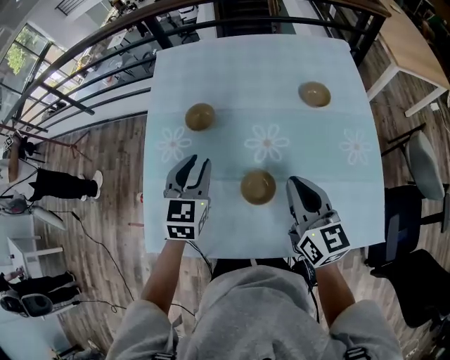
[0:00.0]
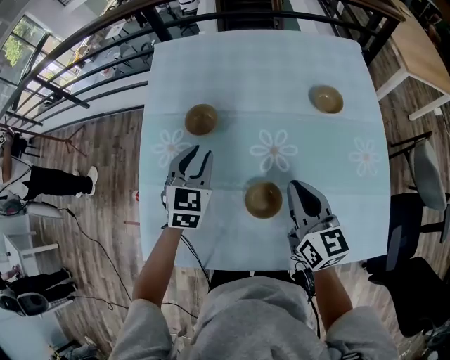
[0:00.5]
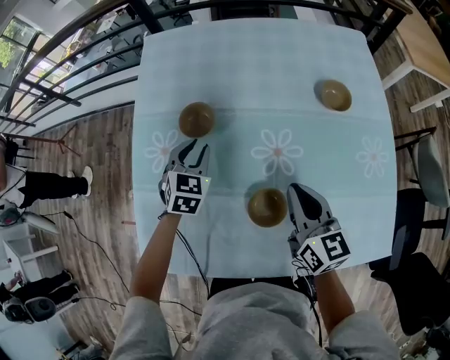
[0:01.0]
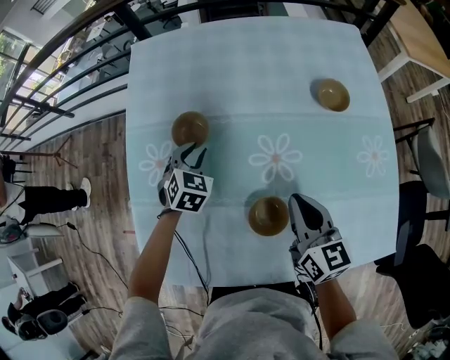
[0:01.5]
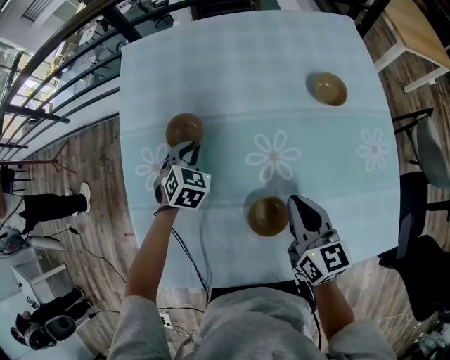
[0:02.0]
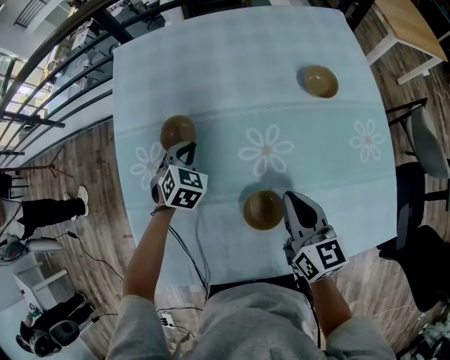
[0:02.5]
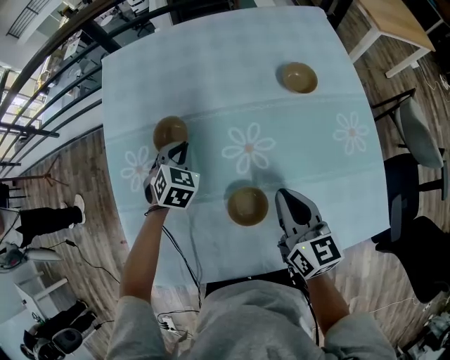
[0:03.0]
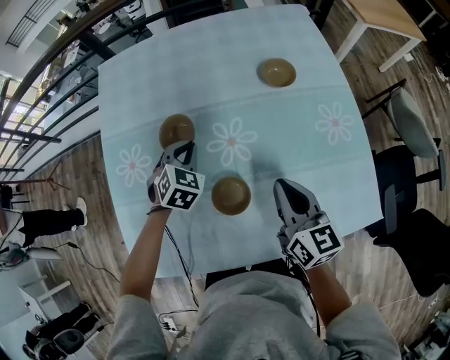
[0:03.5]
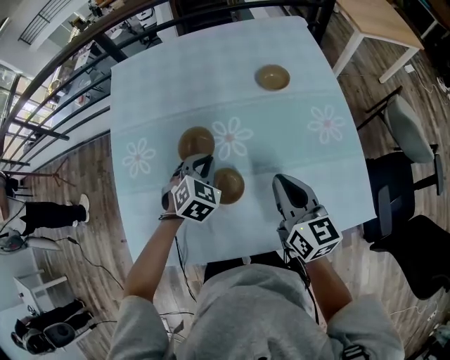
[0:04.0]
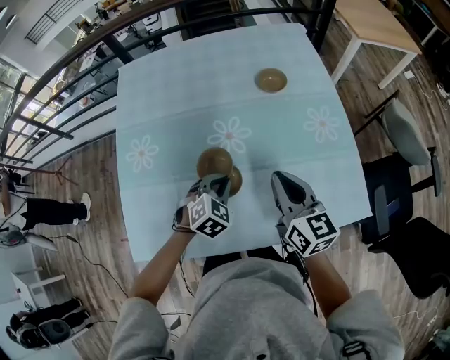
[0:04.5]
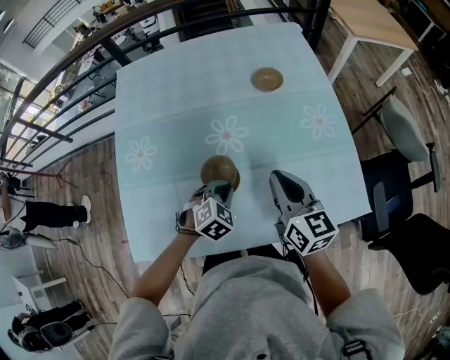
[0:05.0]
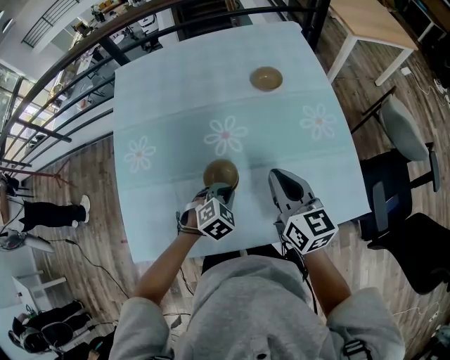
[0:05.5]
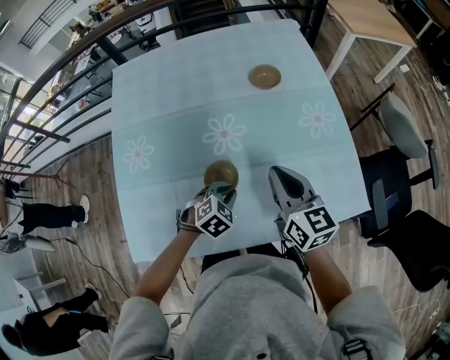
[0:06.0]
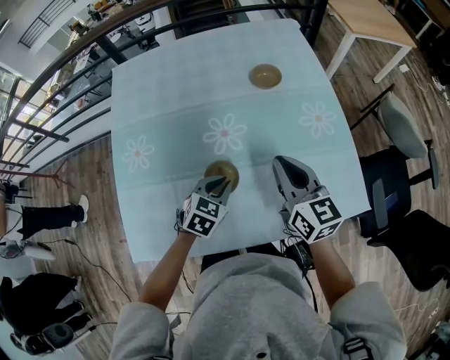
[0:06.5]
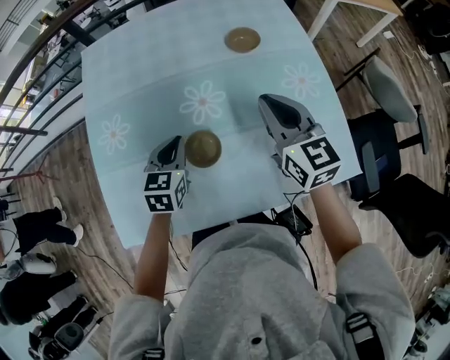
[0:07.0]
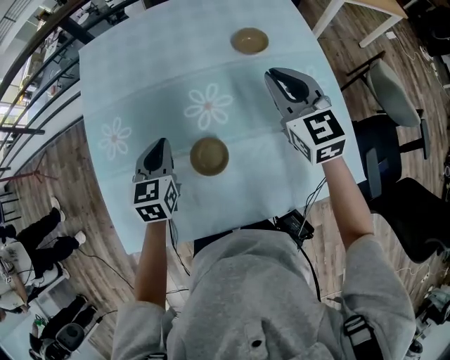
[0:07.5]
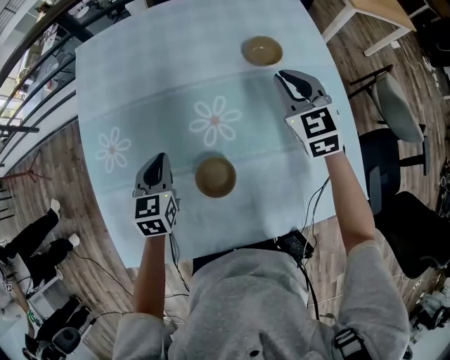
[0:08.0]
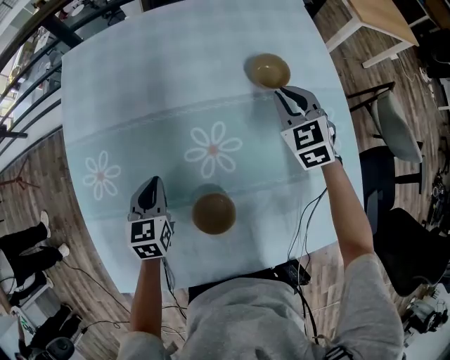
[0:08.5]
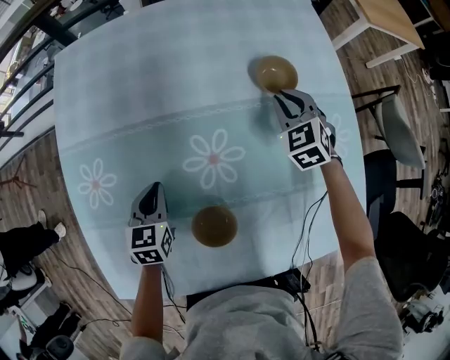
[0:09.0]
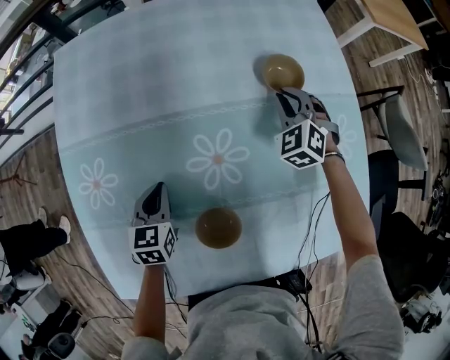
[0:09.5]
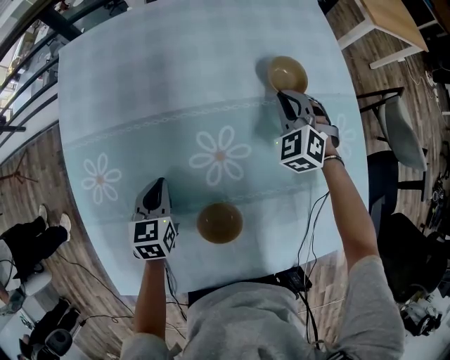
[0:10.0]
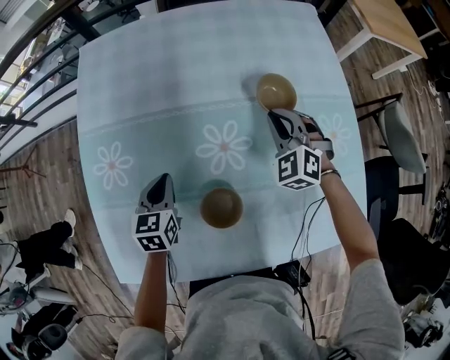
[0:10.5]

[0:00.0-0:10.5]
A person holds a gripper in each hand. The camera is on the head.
0:00.0 to 0:02.0: The right gripper is displaced downward and forward by some 15 cm. Meanwhile the left gripper moves downward and forward, roughly 25 cm, and swivels about 30 degrees.
0:02.0 to 0:04.0: The right gripper is displaced to the right, backward and upward by about 15 cm. Meanwhile the left gripper heads to the right, backward and upward, covering approximately 25 cm.
0:04.0 to 0:06.5: The left gripper travels backward and to the right by roughly 10 cm, and turns by roughly 20 degrees.
0:06.5 to 0:08.5: The right gripper travels forward and downward by some 30 cm, and rolls counterclockwise, seen from behind, by approximately 40 degrees. Meanwhile the left gripper moves to the left and forward, about 20 cm, and changes its angle by some 30 degrees.
0:08.5 to 0:10.5: The right gripper goes about 5 cm to the left, and rotates approximately 20 degrees.

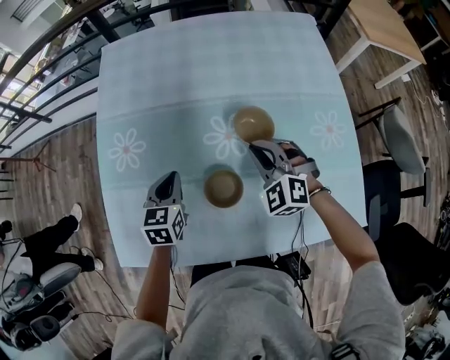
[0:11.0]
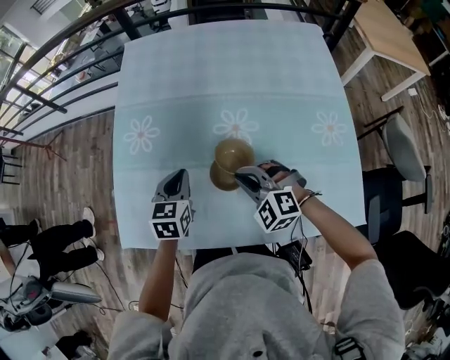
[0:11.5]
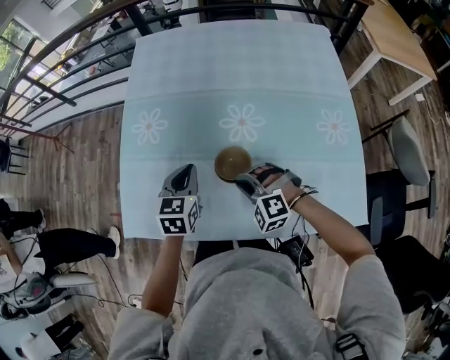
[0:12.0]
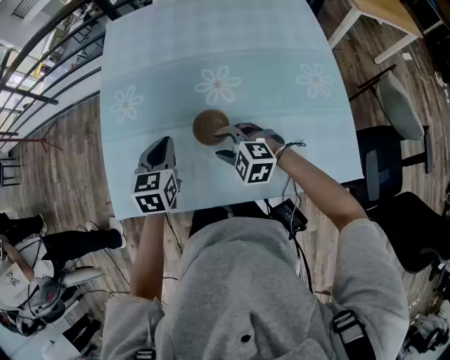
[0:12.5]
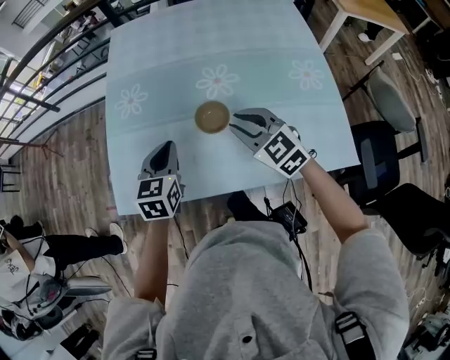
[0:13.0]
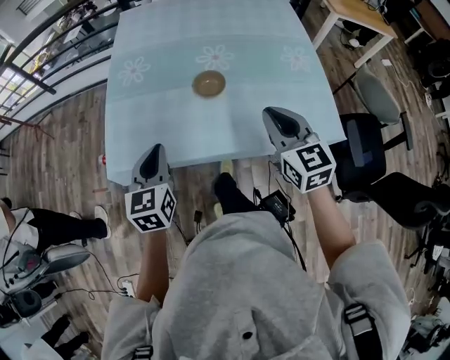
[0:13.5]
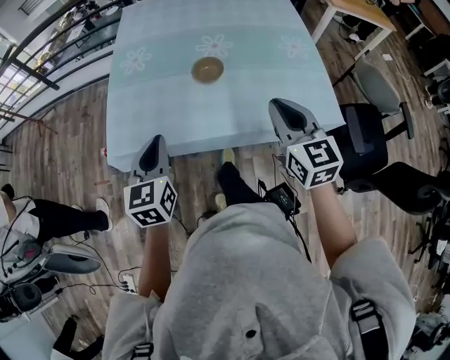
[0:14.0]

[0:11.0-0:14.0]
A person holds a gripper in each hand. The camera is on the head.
0:11.0 to 0:12.5: The left gripper shifts approximately 10 cm backward and upward, while the right gripper travels to the left and backward by some 20 cm, swivels about 30 degrees, and opens its fingers.
0:12.5 to 0:14.0: The right gripper shifts roughly 30 cm backward and upward, points its fingers about 30 degrees further upward, and closes up. The left gripper heads backward, covering roughly 25 cm.

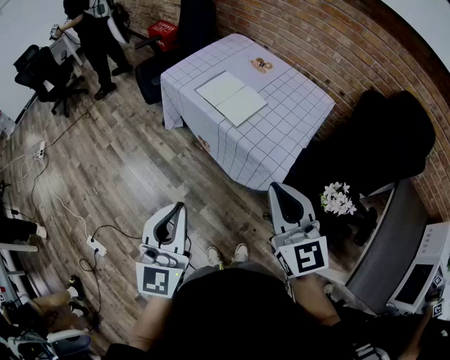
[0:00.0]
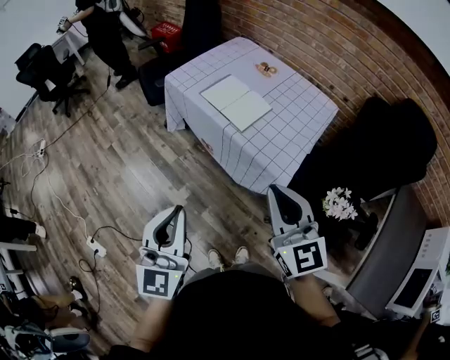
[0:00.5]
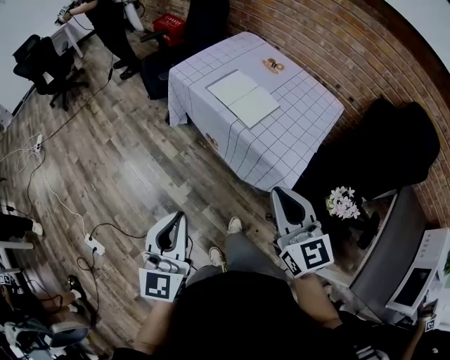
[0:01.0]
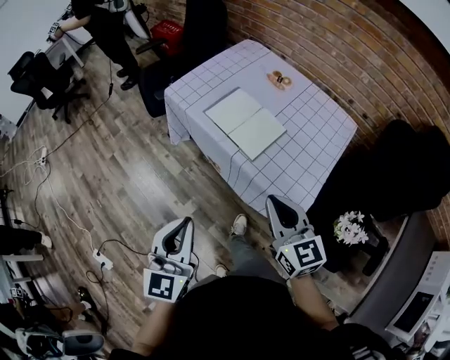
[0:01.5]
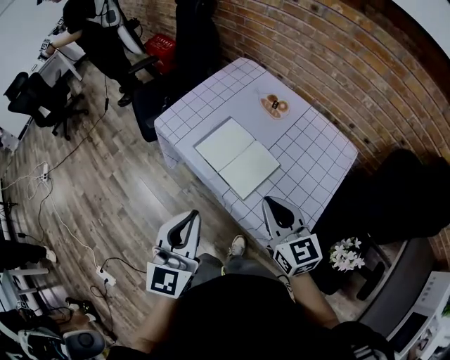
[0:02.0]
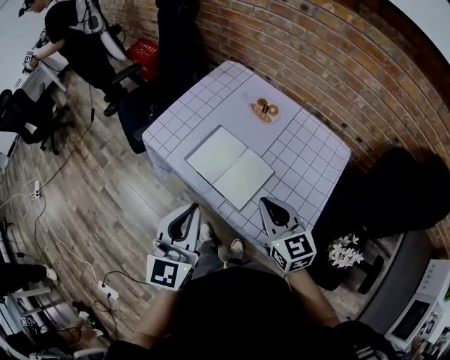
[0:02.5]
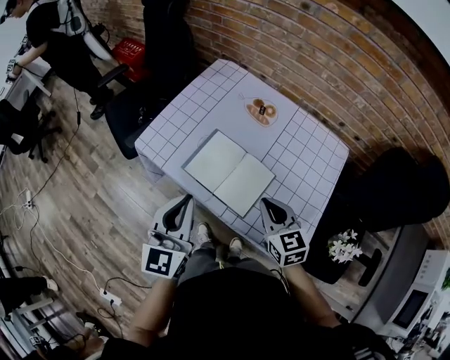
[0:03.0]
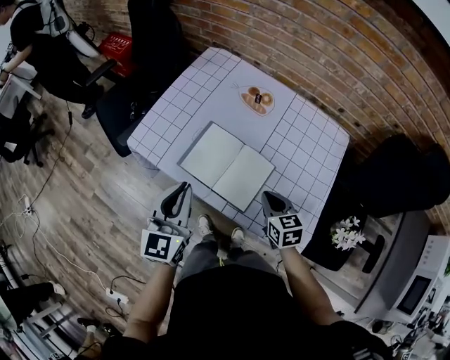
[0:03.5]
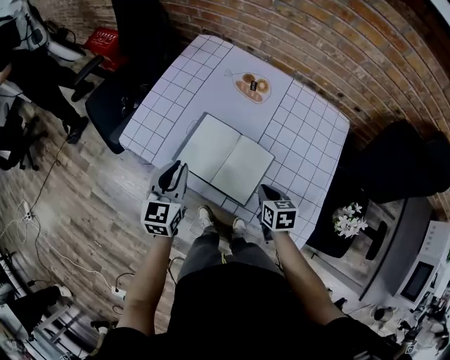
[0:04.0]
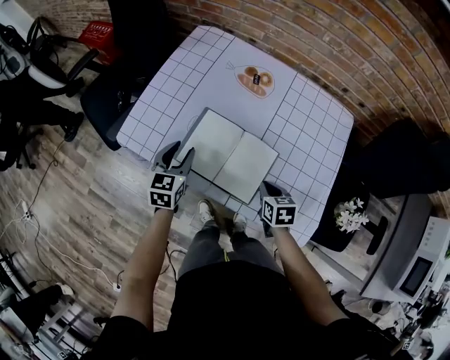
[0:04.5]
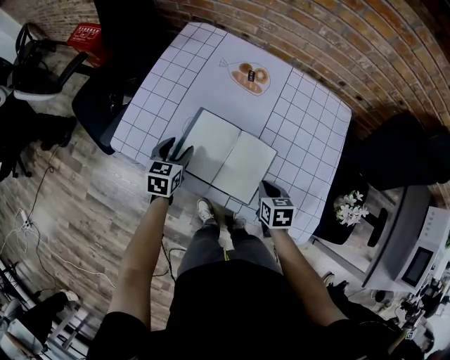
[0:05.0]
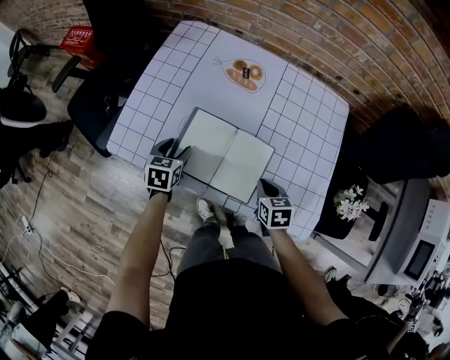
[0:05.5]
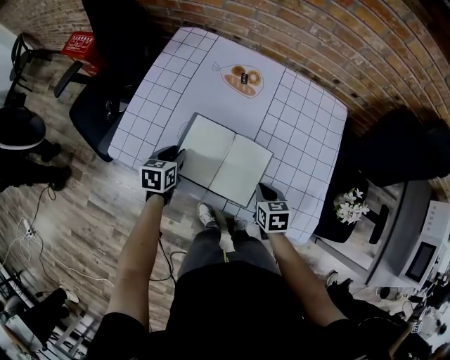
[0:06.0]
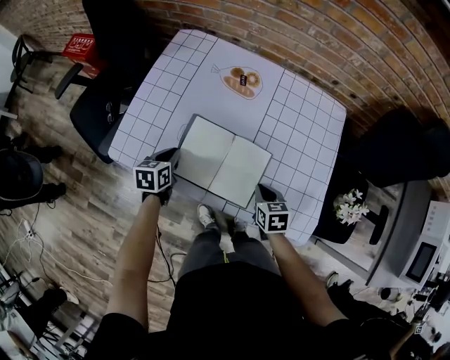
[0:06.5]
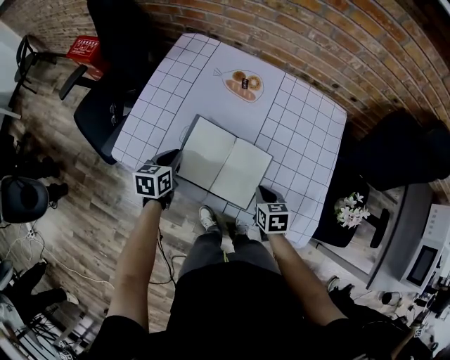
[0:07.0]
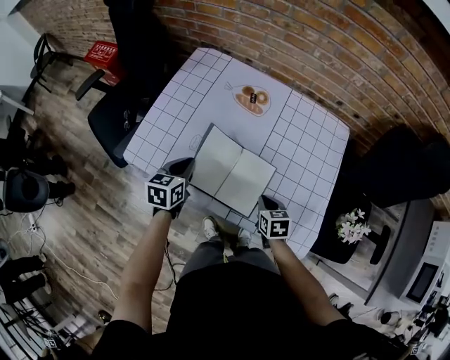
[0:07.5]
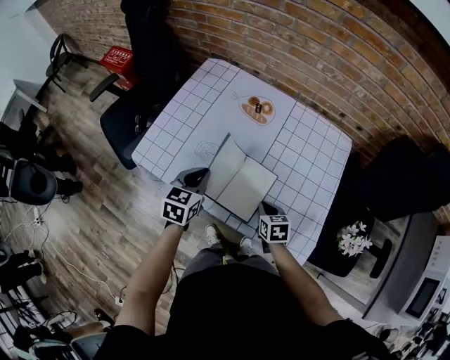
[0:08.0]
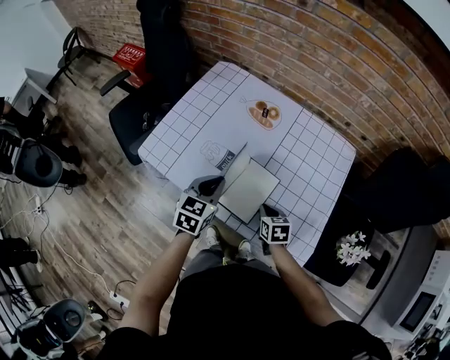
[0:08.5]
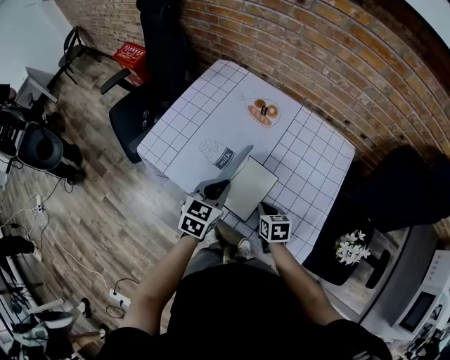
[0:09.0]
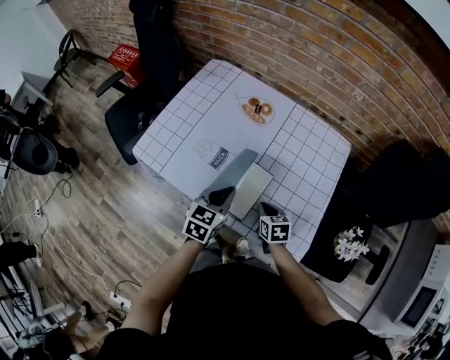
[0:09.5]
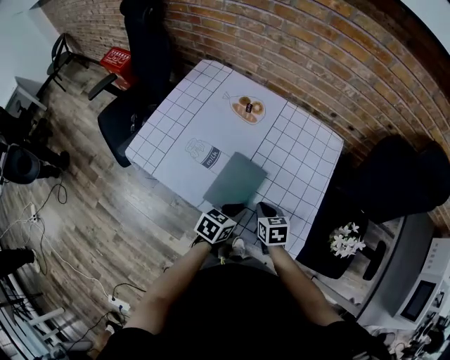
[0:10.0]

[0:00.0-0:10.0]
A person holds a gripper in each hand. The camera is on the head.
0:00.0 to 0:02.0: The two grippers go about 30 cm forward.
0:02.0 to 0:04.0: The left gripper goes some 30 cm forward and downward, and rotates some 20 degrees. The right gripper moves downward, approximately 25 cm, and angles its fingers downward, by about 40 degrees.
0:04.0 to 0:06.0: The left gripper travels downward and forward by about 15 cm, swivels some 30 degrees, and opens up.
0:06.0 to 0:08.0: The left gripper shifts approximately 15 cm upward and to the right, and closes up.
0:08.0 to 0:10.0: The left gripper shifts roughly 20 cm to the right and backward, and turns by roughly 20 degrees.

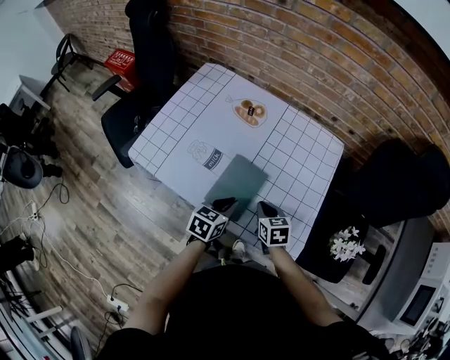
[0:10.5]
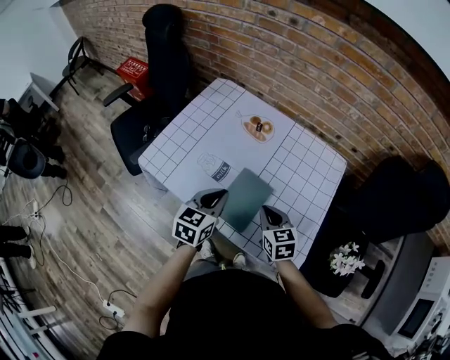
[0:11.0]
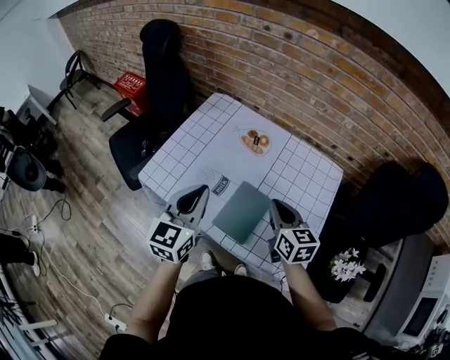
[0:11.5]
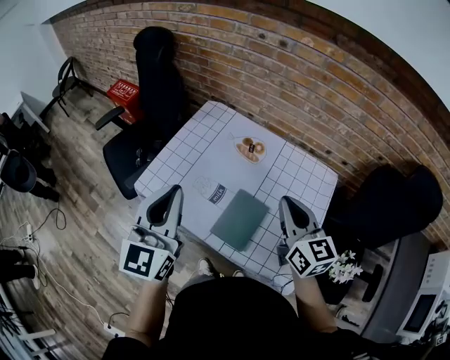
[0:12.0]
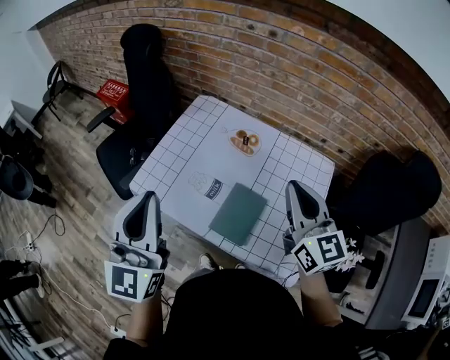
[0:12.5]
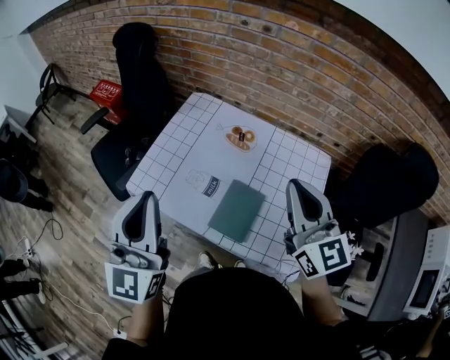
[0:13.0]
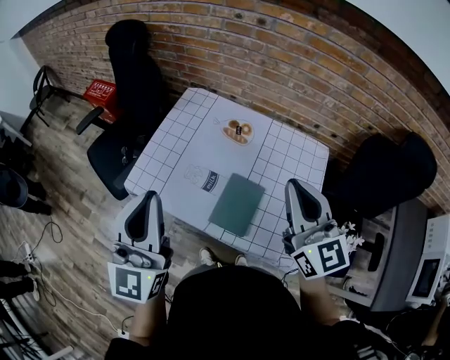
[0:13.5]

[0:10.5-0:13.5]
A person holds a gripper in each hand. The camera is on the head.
0:10.5 to 0:12.0: The right gripper travels upward by approximately 30 cm, and tips its fingers upward by some 40 degrees. Meanwhile the left gripper travels upward and to the left by some 40 cm, and tilts its fingers some 40 degrees upward.
0:12.0 to 0:13.5: The right gripper travels upward by roughly 10 cm. Meanwhile the left gripper ends up roughly 5 cm from where it was.
